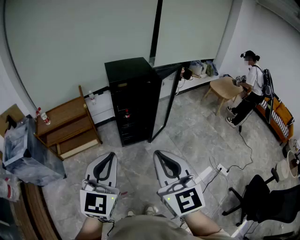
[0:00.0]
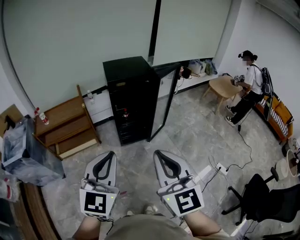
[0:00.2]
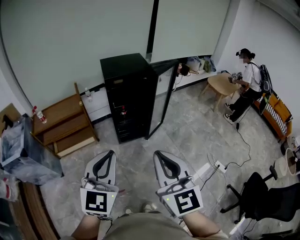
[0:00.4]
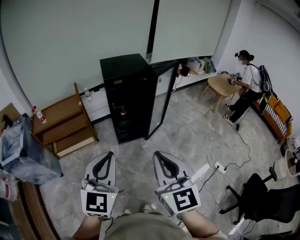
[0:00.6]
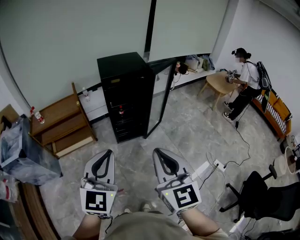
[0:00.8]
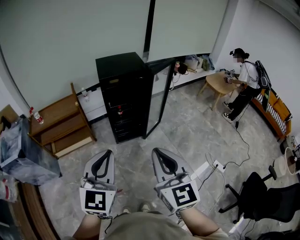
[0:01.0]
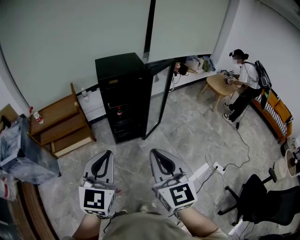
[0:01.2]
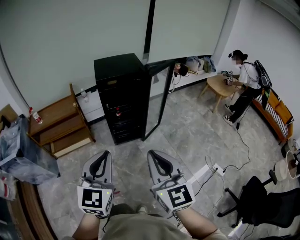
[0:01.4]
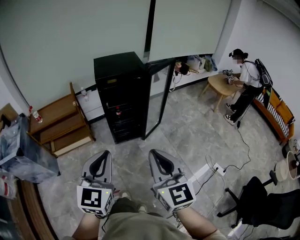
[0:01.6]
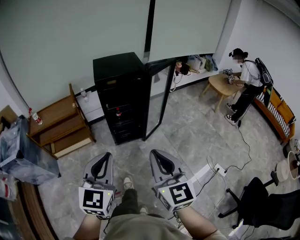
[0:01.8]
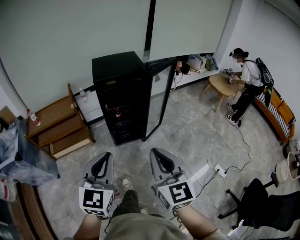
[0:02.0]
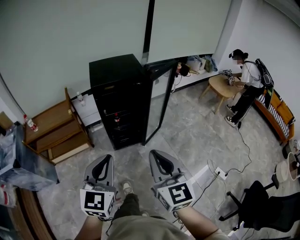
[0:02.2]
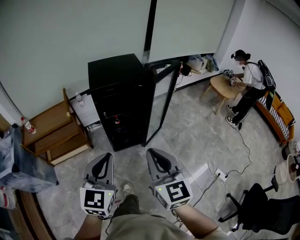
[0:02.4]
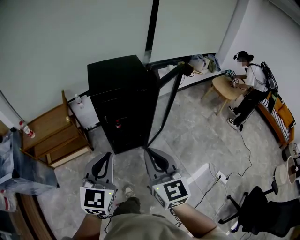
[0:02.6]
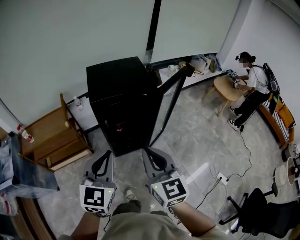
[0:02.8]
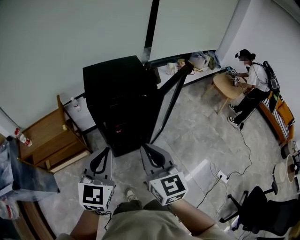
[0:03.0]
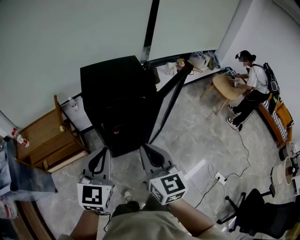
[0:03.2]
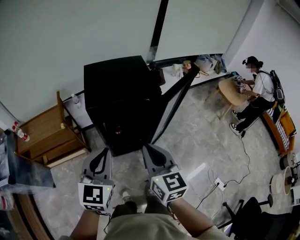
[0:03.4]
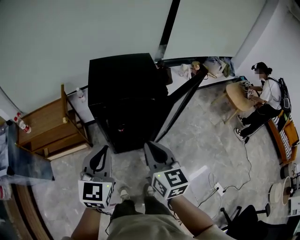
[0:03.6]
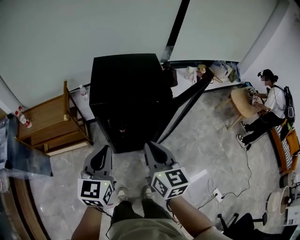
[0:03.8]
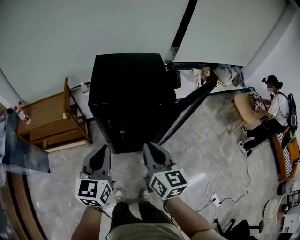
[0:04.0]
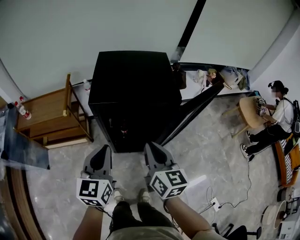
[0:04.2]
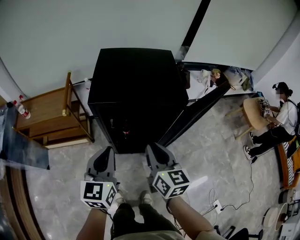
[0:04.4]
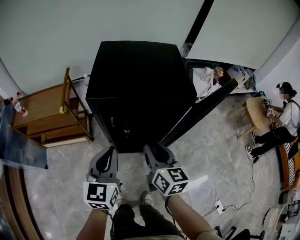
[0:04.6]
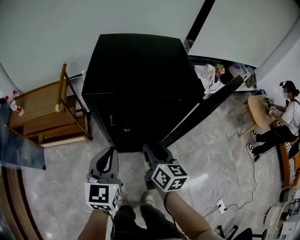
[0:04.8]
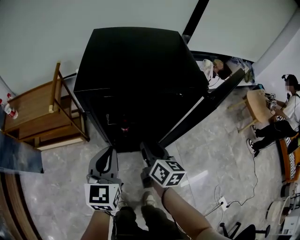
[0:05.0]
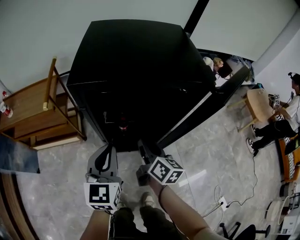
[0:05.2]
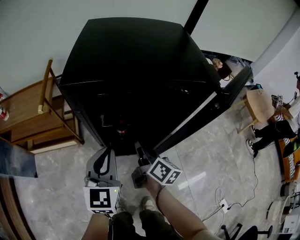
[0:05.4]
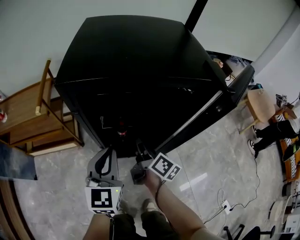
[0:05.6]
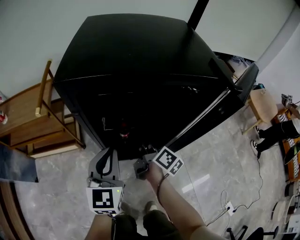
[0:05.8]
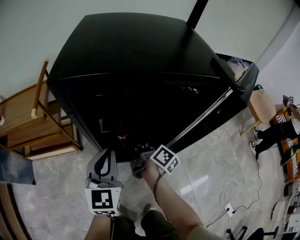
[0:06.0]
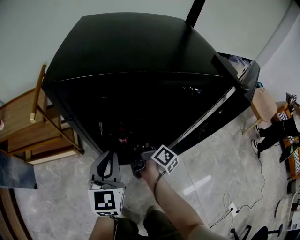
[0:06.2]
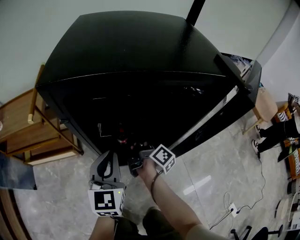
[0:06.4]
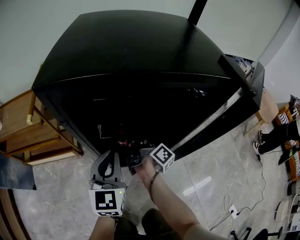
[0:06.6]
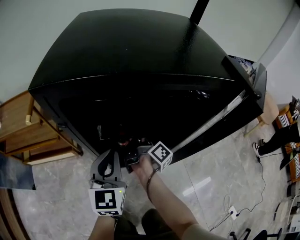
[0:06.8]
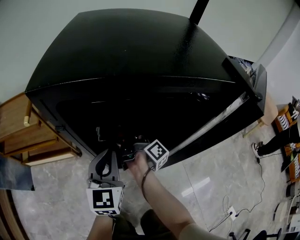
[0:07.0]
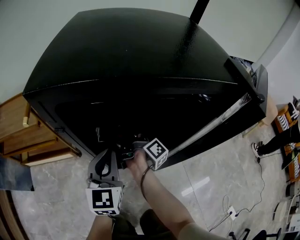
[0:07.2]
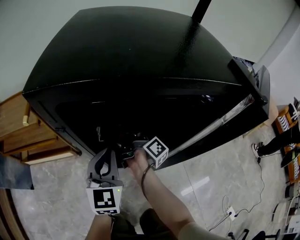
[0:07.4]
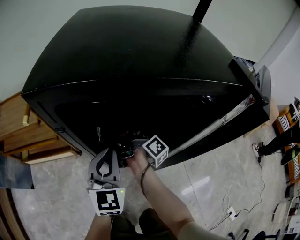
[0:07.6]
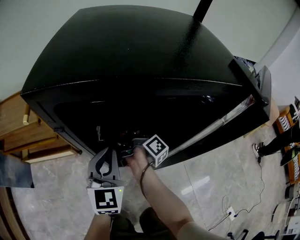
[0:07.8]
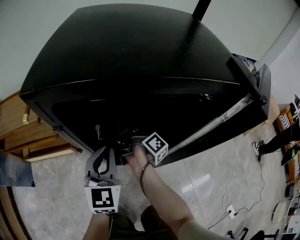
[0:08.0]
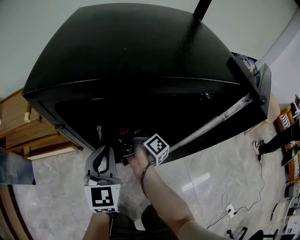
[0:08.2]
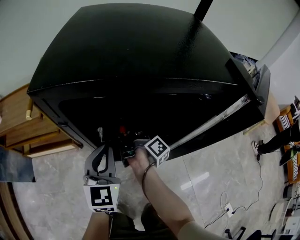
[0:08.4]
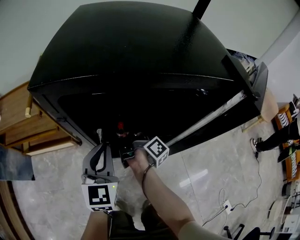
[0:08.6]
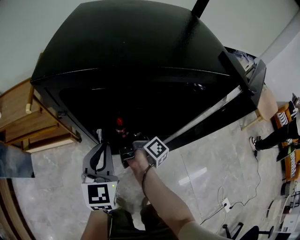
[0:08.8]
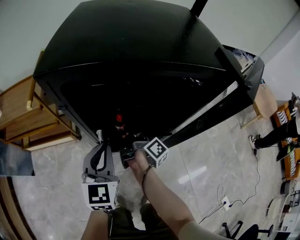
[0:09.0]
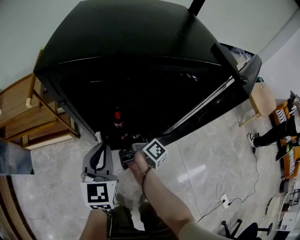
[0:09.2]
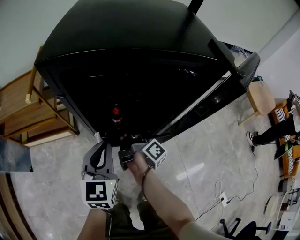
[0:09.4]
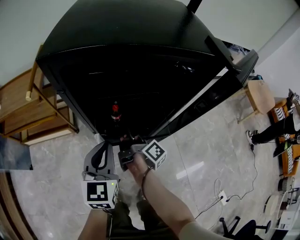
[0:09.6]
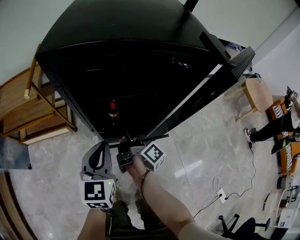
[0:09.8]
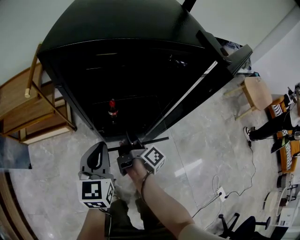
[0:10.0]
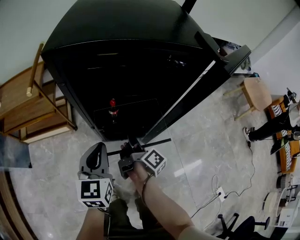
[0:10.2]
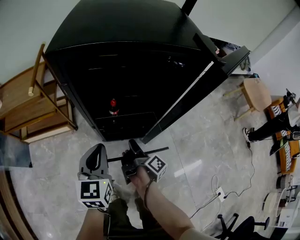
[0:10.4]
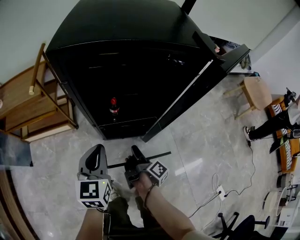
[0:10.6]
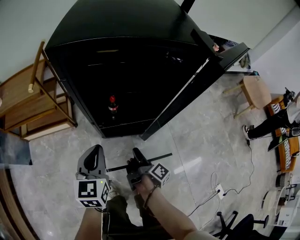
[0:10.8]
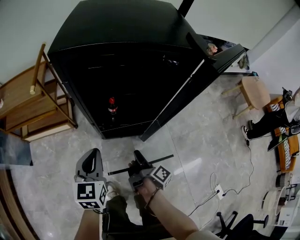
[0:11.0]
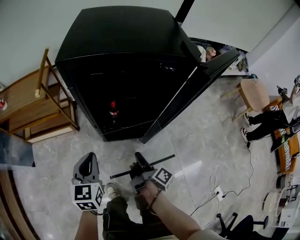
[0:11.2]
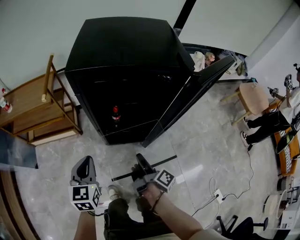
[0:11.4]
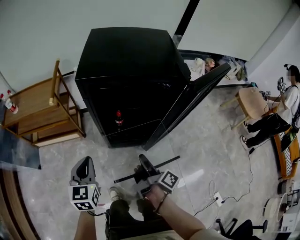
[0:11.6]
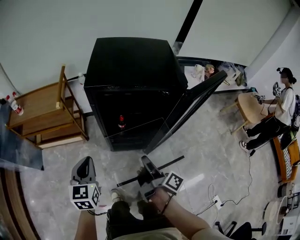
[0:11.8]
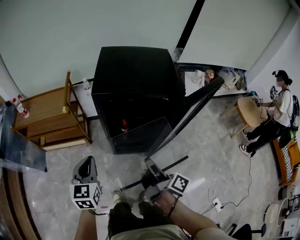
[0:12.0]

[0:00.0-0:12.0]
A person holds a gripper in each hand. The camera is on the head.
0:00.0 to 0:01.6: The right gripper moves to the right, downward and forward, roughly 10 cm. Meanwhile the left gripper heads to the right, covering about 5 cm.
0:01.6 to 0:03.0: The grippers both shift forward by approximately 35 cm.
0:03.0 to 0:04.4: The right gripper heads forward and downward, covering approximately 25 cm, and swivels approximately 20 degrees; the left gripper shifts some 20 cm downward and forward, and swivels about 30 degrees.
0:04.4 to 0:06.0: The right gripper moves downward and forward, roughly 35 cm, twists some 50 degrees clockwise, seen from behind, and opens its fingers, while the left gripper shifts some 25 cm downward and forward.
0:06.0 to 0:07.6: The right gripper goes about 10 cm forward, and closes, while the left gripper travels forward by approximately 5 cm.
0:07.6 to 0:09.0: The left gripper travels backward by about 5 cm. Meanwhile the right gripper is displaced backward by some 10 cm.
0:09.0 to 0:10.4: The left gripper travels backward by roughly 10 cm. Meanwhile the right gripper is displaced backward by some 15 cm.
0:10.4 to 0:12.0: The right gripper is displaced upward by roughly 30 cm, and changes its angle by approximately 20 degrees. Meanwhile the left gripper moves upward, to the left and backward, roughly 20 cm.

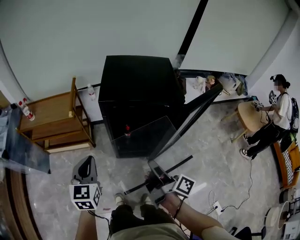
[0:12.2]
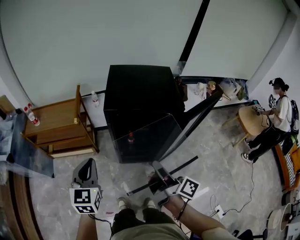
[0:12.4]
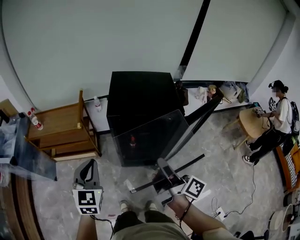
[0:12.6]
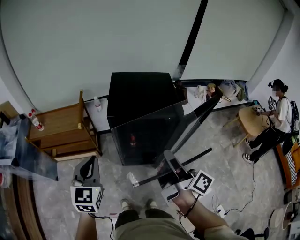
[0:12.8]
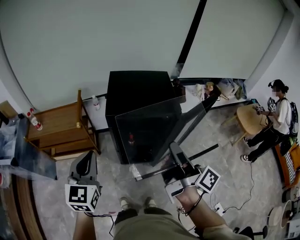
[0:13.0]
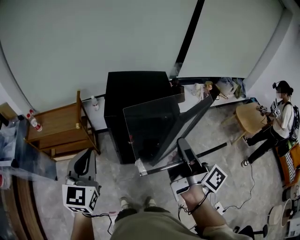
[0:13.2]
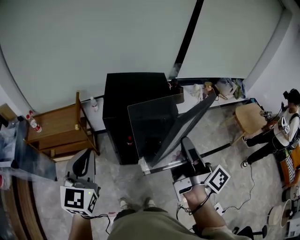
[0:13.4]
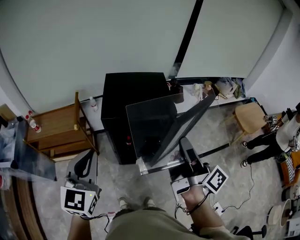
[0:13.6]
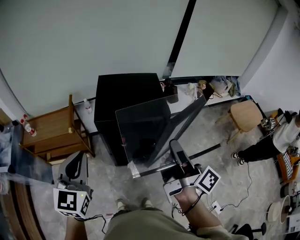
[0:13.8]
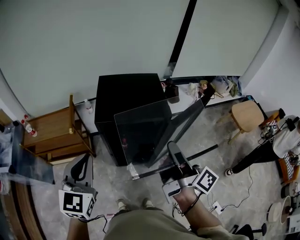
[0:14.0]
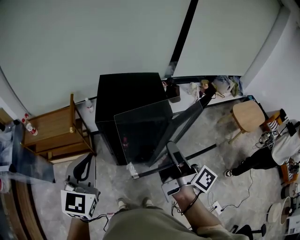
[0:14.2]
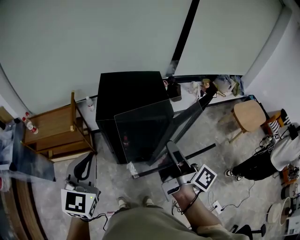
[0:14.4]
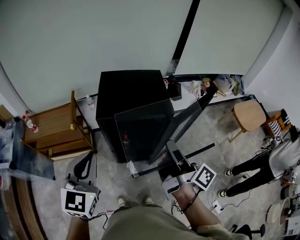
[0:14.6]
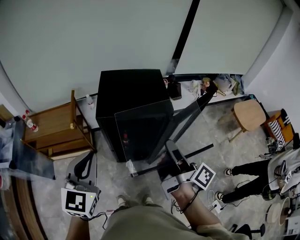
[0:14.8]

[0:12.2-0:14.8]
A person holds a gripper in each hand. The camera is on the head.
0:12.2 to 0:13.4: The grippers both shift upward by approximately 25 cm. The right gripper turns by some 20 degrees.
0:13.4 to 0:14.8: The right gripper heads downward, covering roughly 5 cm.

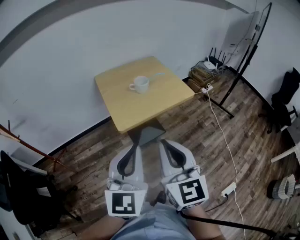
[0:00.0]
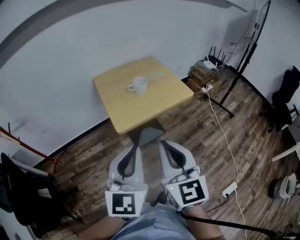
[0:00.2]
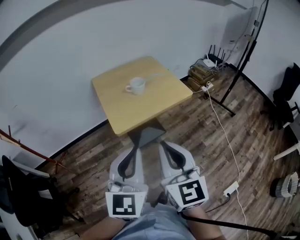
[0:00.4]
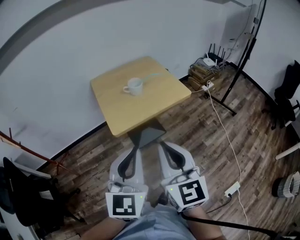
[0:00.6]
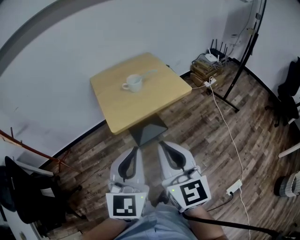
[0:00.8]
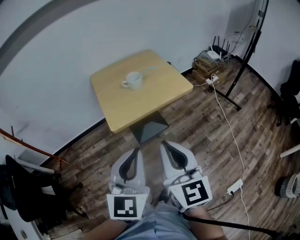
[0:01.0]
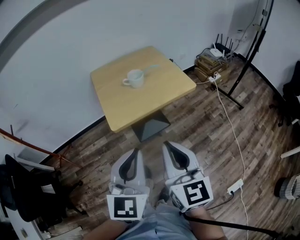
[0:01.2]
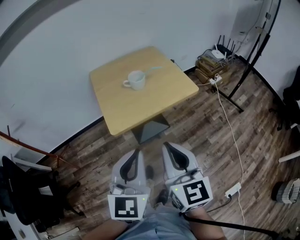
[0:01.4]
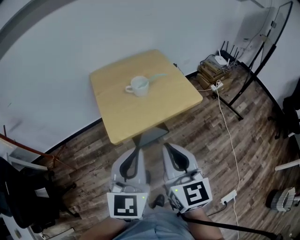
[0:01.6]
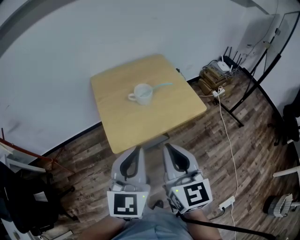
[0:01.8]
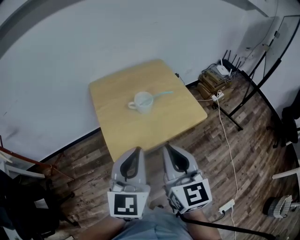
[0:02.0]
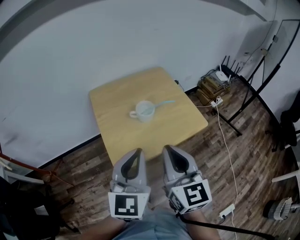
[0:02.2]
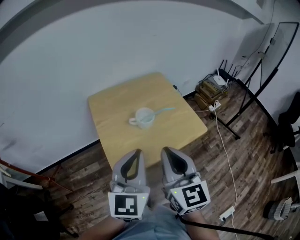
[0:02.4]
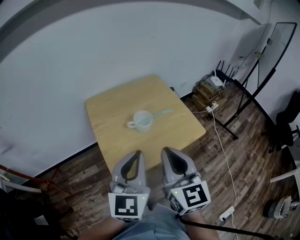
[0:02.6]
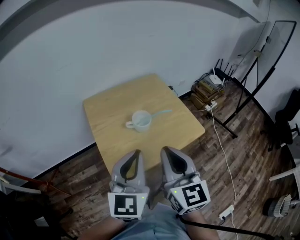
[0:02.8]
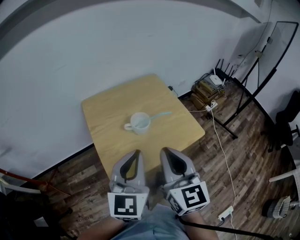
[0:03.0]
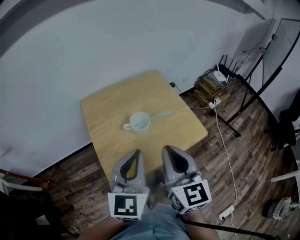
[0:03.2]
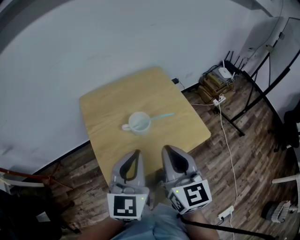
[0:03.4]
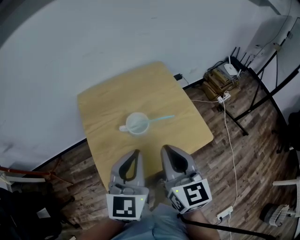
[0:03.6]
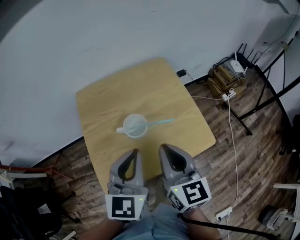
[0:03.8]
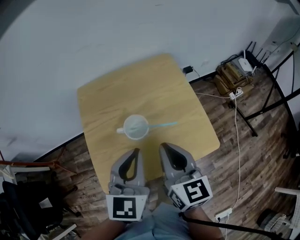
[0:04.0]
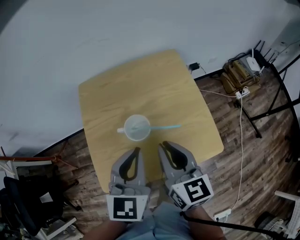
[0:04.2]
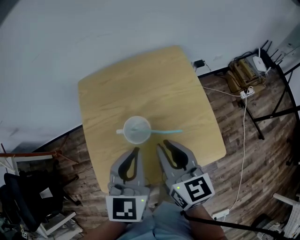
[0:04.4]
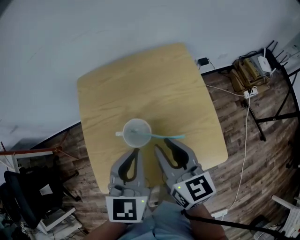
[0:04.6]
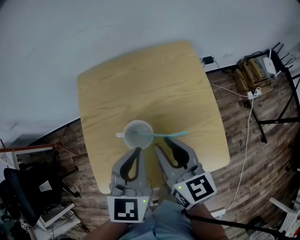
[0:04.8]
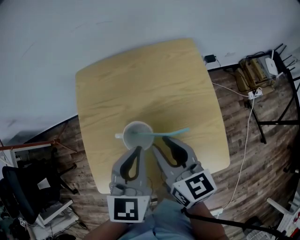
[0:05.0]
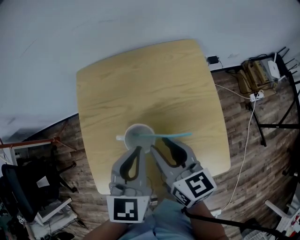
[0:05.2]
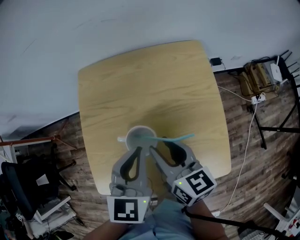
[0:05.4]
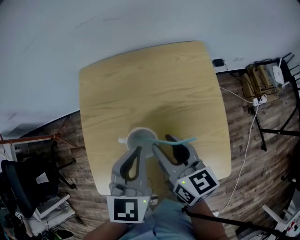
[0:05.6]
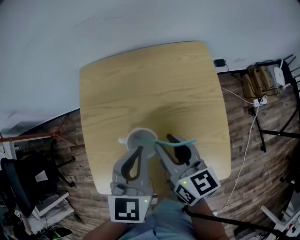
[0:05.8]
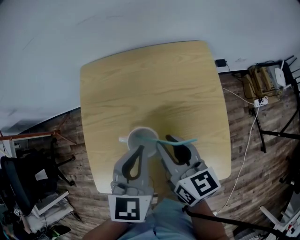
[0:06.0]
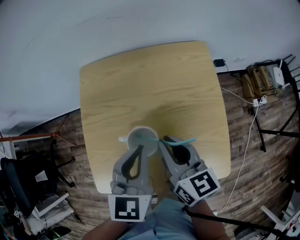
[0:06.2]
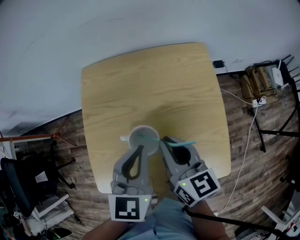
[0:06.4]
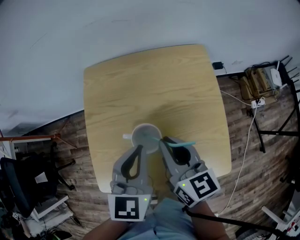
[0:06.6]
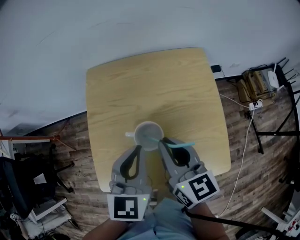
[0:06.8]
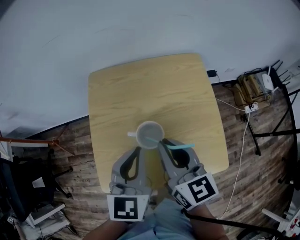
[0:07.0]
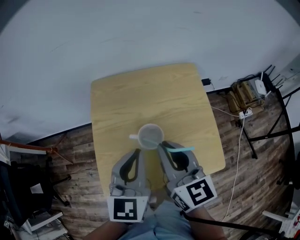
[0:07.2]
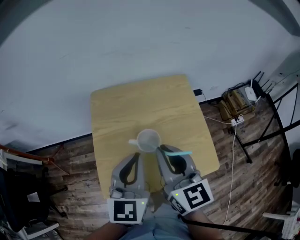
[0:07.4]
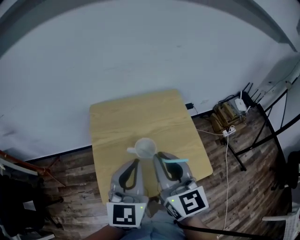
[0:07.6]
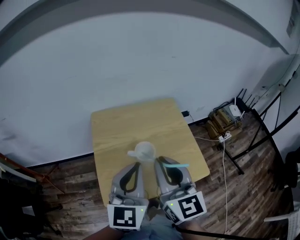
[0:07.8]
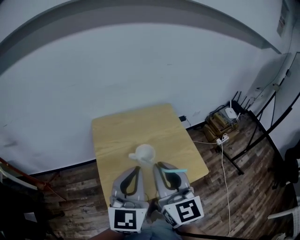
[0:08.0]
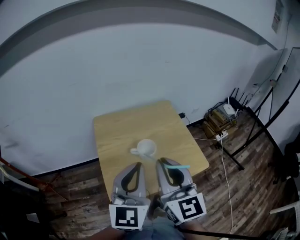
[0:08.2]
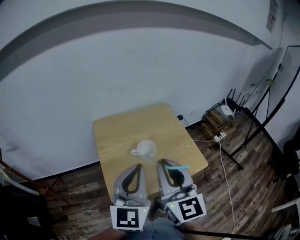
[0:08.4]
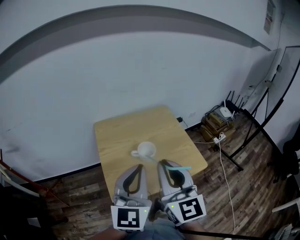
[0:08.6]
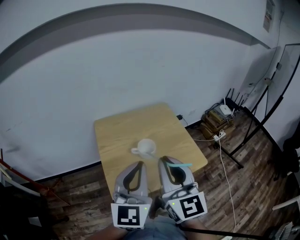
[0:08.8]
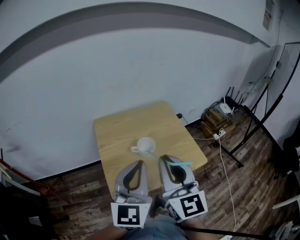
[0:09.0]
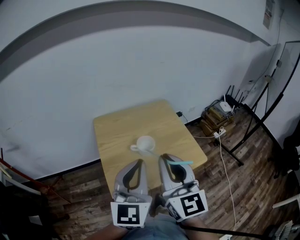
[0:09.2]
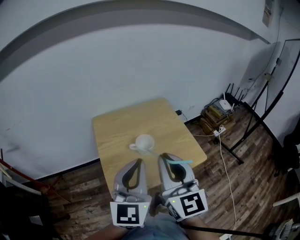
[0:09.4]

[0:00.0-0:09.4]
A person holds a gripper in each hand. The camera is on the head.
0:00.0 to 0:01.6: The right gripper goes about 15 cm forward, to the right and downward; the left gripper is displaced forward and to the right by approximately 15 cm.
0:01.6 to 0:03.2: Both grippers travel together forward, approximately 20 cm.
0:03.2 to 0:04.8: The two grippers go roughly 20 cm forward and downward. The left gripper changes its angle by approximately 30 degrees. Meanwhile the right gripper turns by some 30 degrees, and opens.
0:04.8 to 0:06.2: The grippers move only a little.
0:06.2 to 0:07.8: The left gripper heads upward, backward and to the left, covering approximately 20 cm, and turns by about 30 degrees, while the right gripper shifts about 25 cm upward and backward, and swivels approximately 30 degrees.
0:07.8 to 0:09.4: Both grippers travel together backward, roughly 10 cm.
